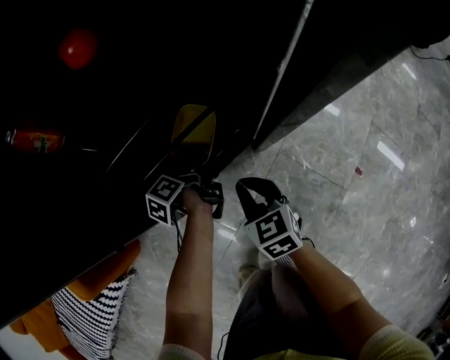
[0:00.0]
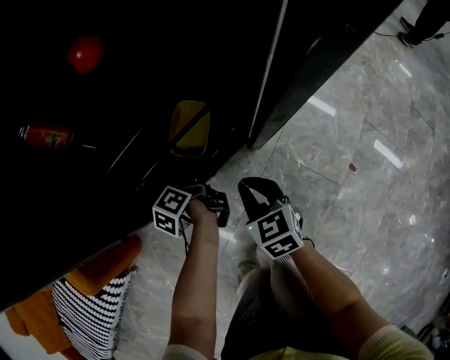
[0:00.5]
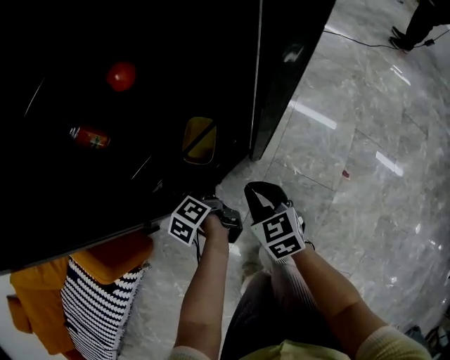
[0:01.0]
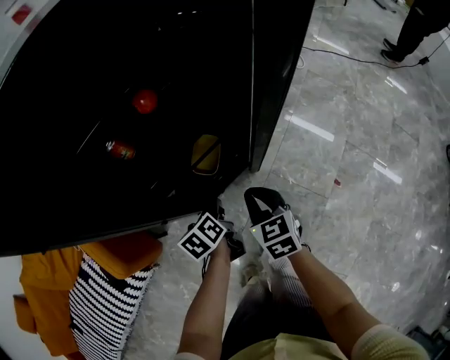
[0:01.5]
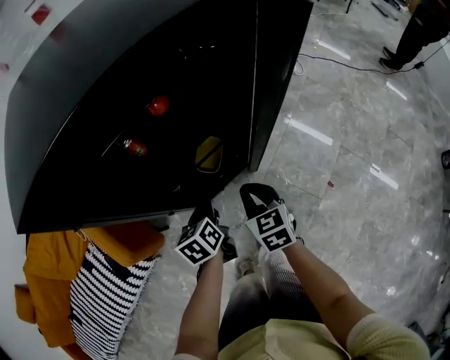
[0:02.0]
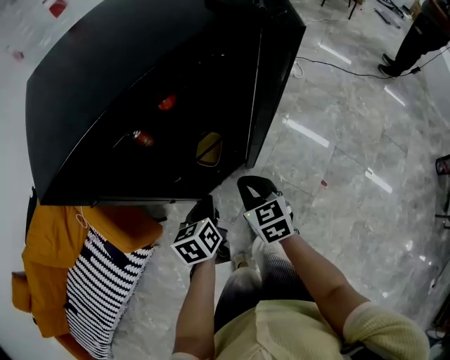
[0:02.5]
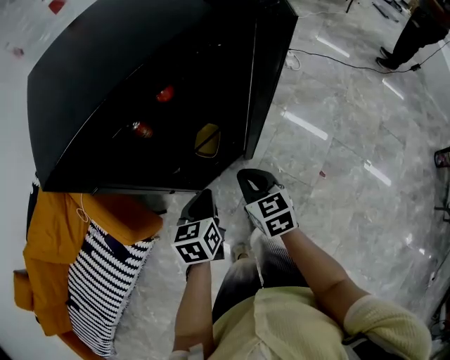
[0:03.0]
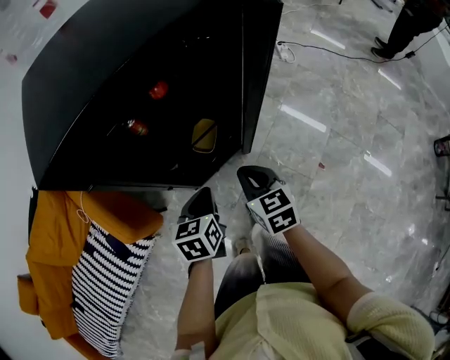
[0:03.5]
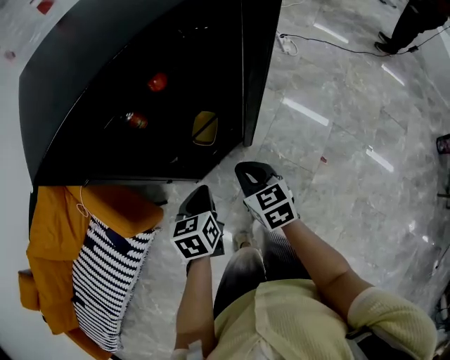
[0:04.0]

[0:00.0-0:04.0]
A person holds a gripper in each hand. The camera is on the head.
0.0 to 2.0 s: The right gripper heads upward, covering about 25 cm. Meanwhile the left gripper shifts some 35 cm upward and backward, and rolls clockwise, seen from behind, by about 50 degrees.
2.0 to 4.0 s: The left gripper heads upward and backward, covering roughly 10 cm. Meanwhile the right gripper goes about 5 cm upward.

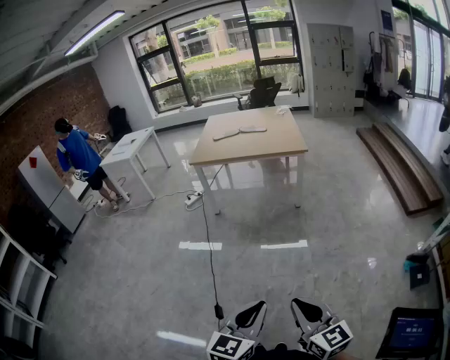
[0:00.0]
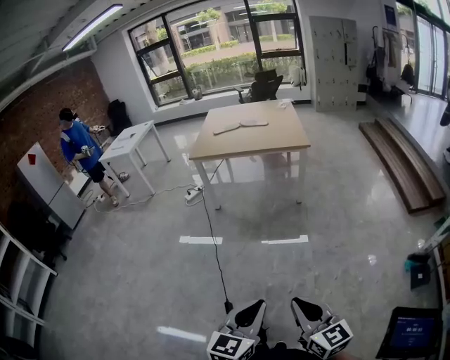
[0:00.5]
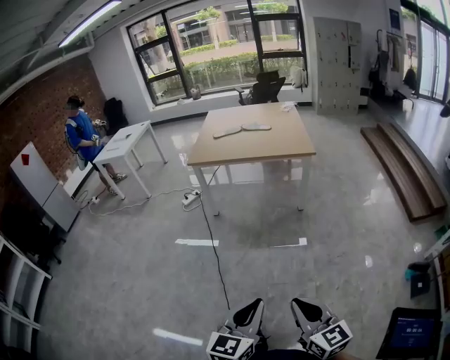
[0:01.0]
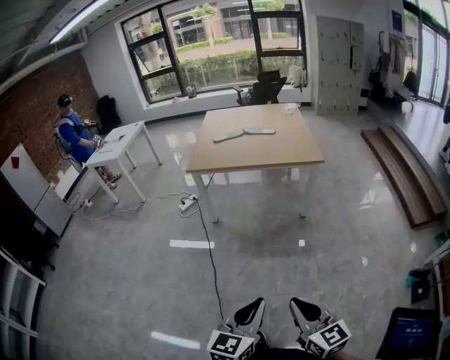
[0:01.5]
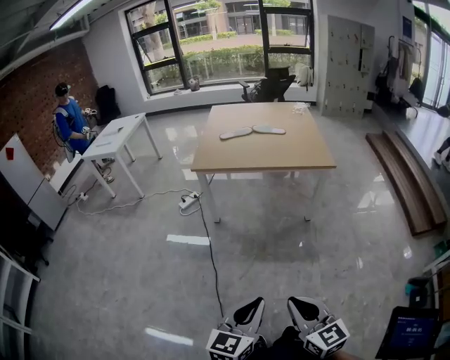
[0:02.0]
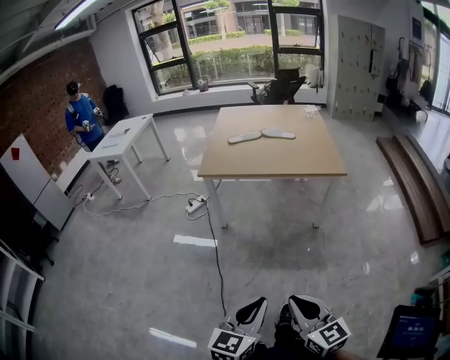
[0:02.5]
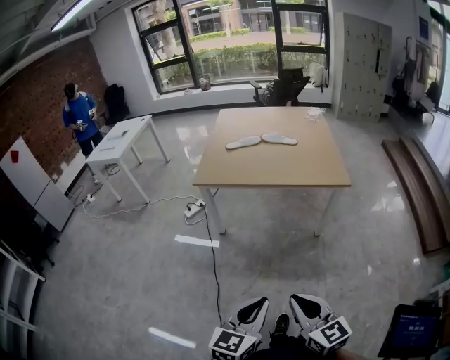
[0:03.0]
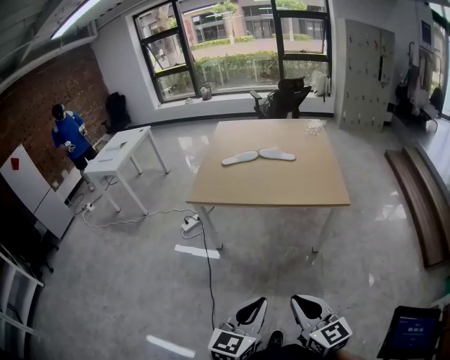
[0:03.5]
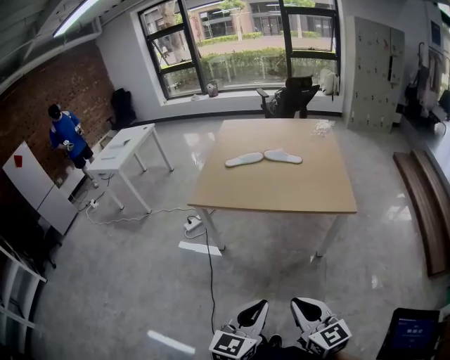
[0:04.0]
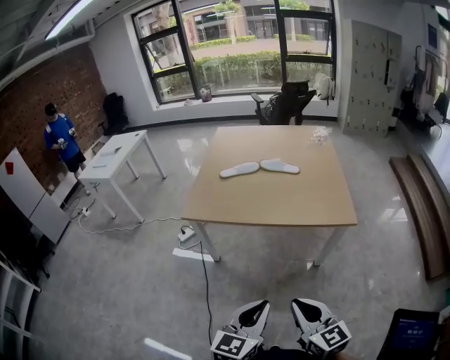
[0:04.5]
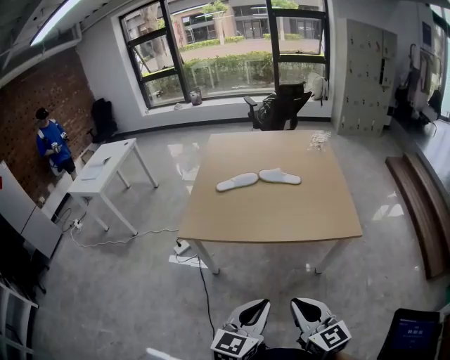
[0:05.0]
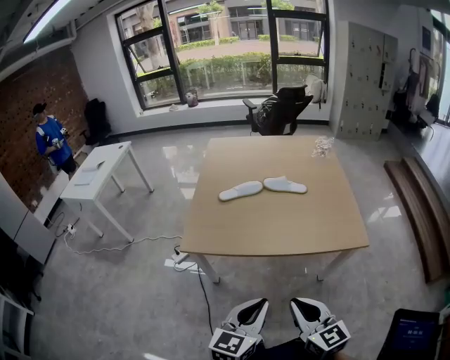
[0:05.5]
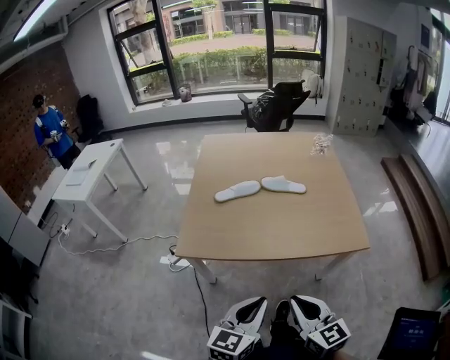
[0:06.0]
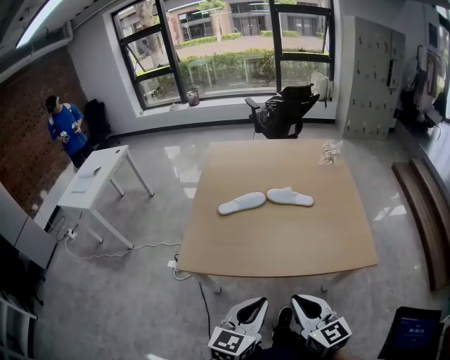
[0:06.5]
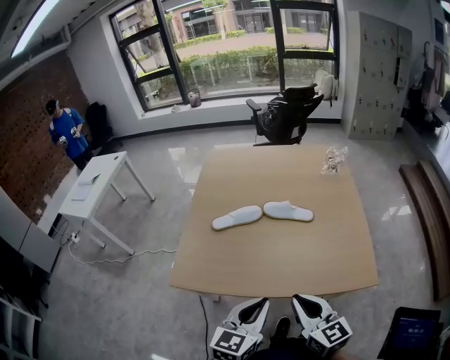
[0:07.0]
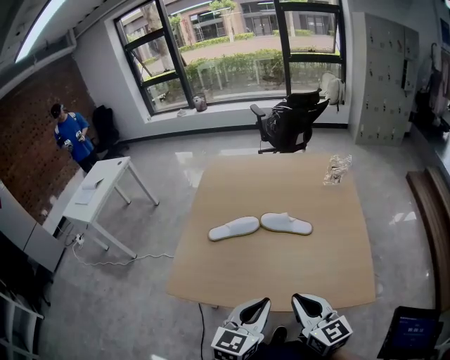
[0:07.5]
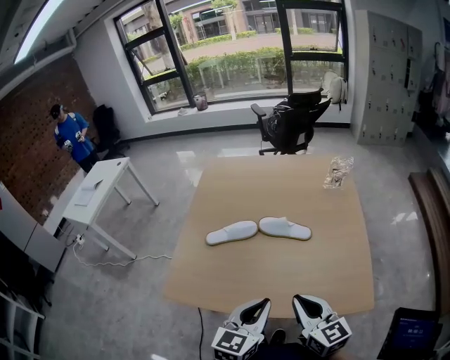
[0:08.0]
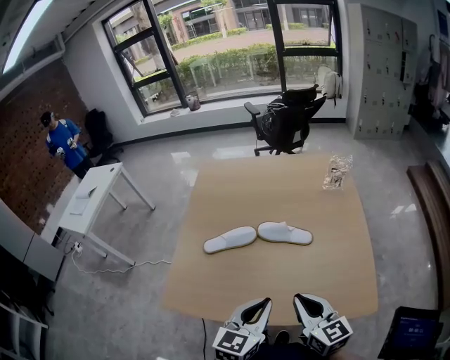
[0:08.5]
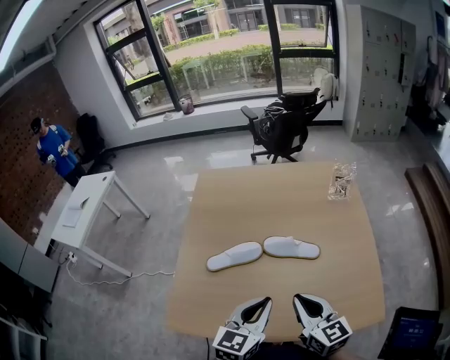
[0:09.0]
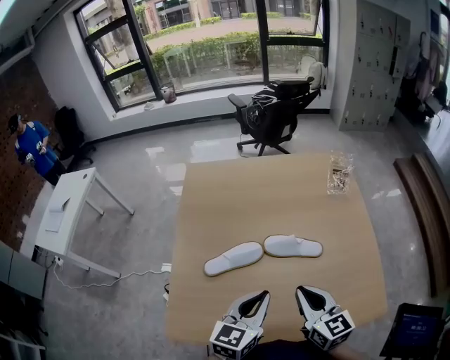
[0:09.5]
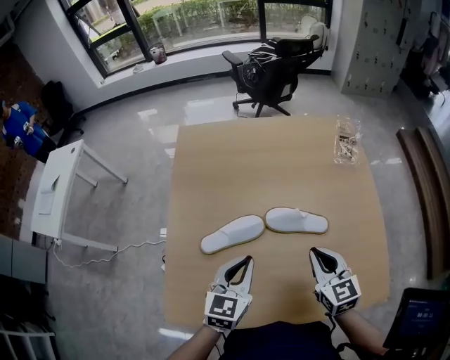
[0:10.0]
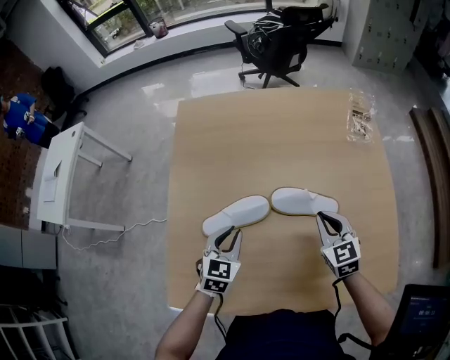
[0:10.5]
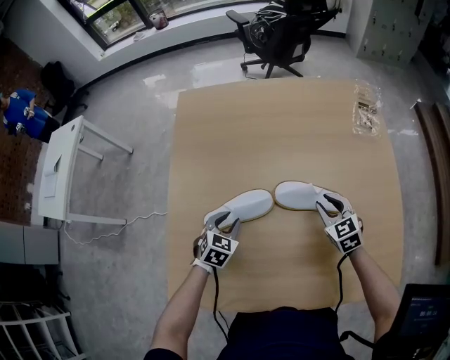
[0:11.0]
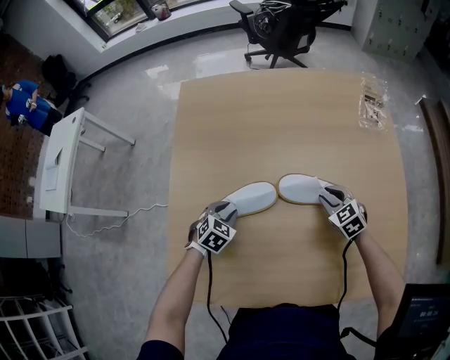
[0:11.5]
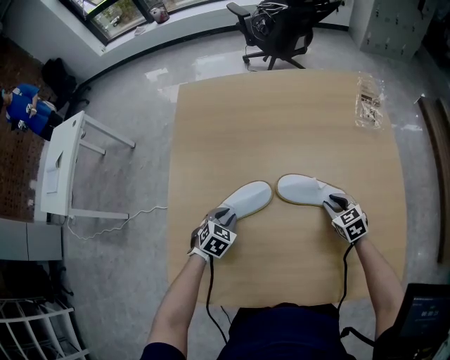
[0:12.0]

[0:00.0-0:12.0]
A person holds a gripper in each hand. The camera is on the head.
0.0 to 2.0 s: Both grippers travel together forward and to the left, about 35 cm.
2.0 to 4.0 s: Both grippers move forward, about 30 cm.
4.0 to 6.0 s: The two grippers go approximately 30 cm forward.
6.0 to 8.0 s: The grippers both shift forward and to the right by roughly 25 cm.
8.0 to 10.0 s: The right gripper is displaced forward by approximately 25 cm, and rotates approximately 20 degrees. The left gripper shifts roughly 25 cm forward and to the left.
10.0 to 12.0 s: The grippers both shift downward by roughly 25 cm. The right gripper swivels roughly 30 degrees; the left gripper points its fingers some 30 degrees further downward.

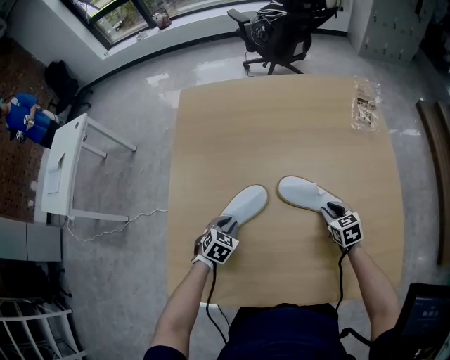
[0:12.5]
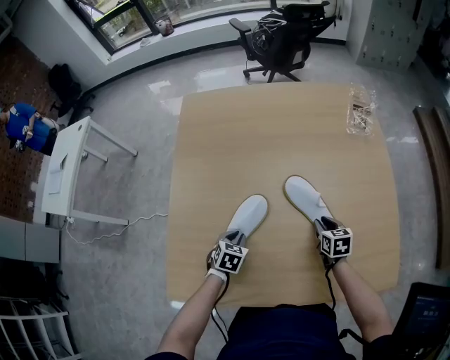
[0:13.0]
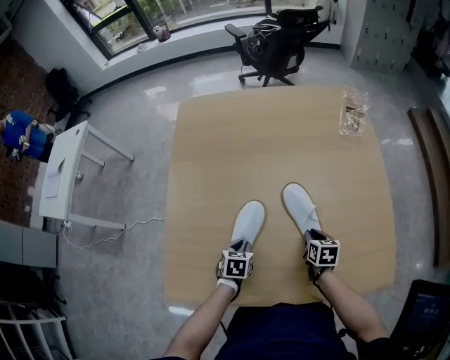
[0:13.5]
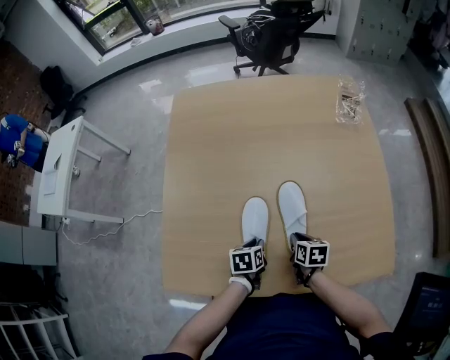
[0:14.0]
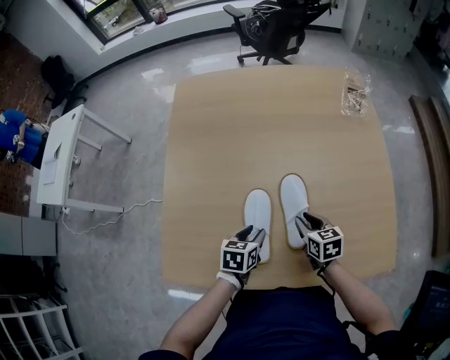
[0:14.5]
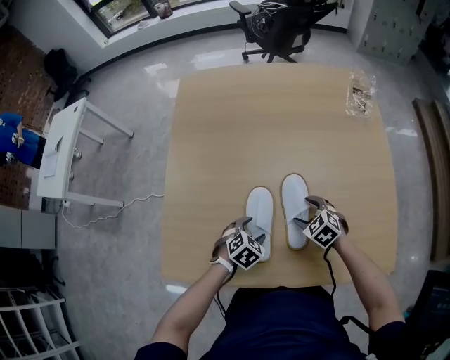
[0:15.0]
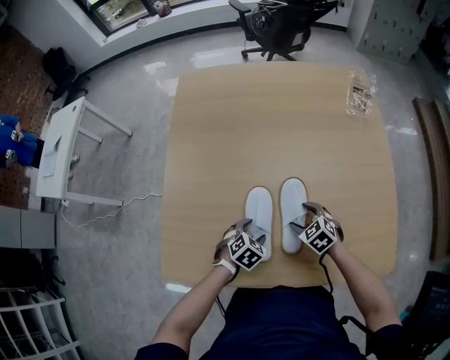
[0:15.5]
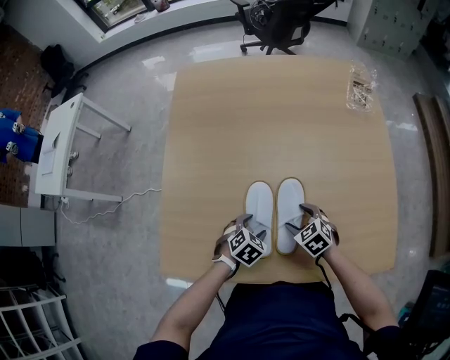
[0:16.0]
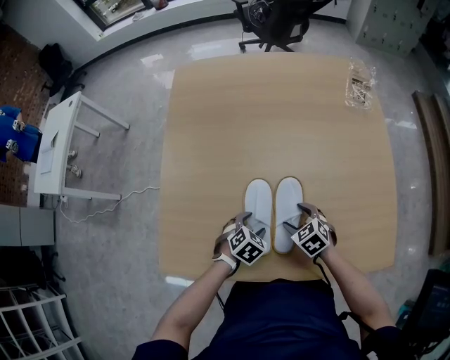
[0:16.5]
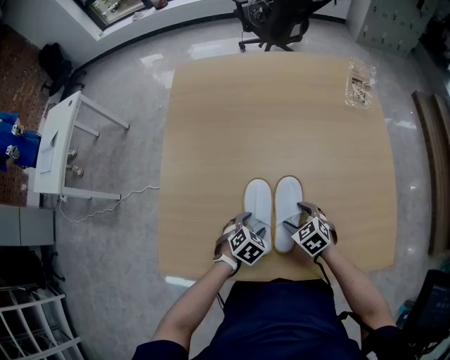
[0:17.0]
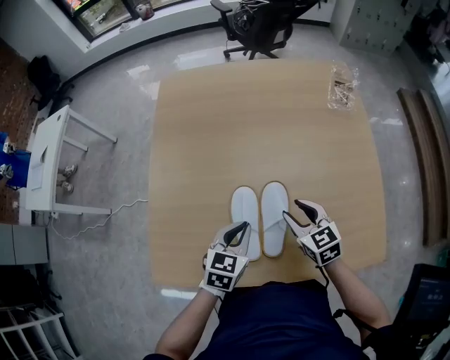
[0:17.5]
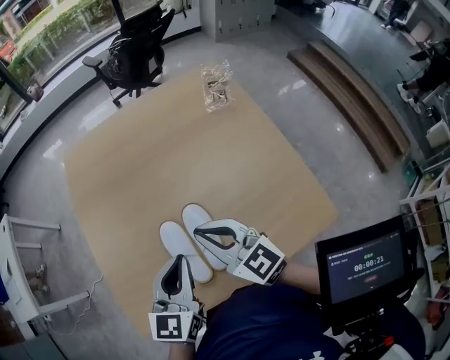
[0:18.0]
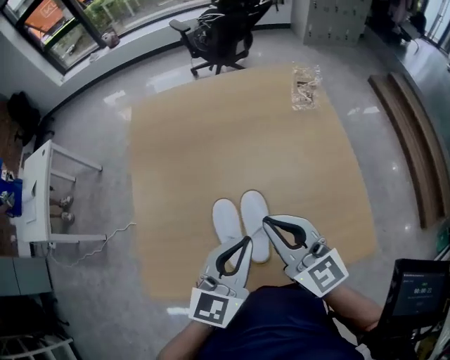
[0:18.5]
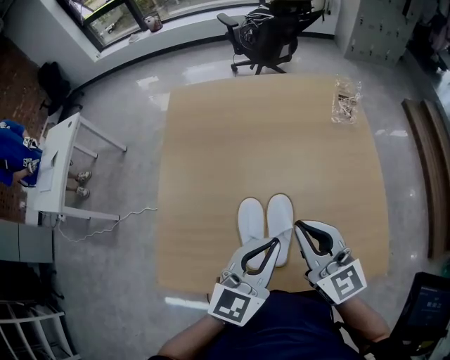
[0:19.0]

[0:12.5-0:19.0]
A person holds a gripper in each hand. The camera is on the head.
12.5 to 14.5 s: The right gripper shifts about 15 cm backward, to the left and upward. The left gripper heads to the right, backward and upward, covering some 15 cm, and changes its angle by approximately 40 degrees.
14.5 to 17.0 s: The left gripper moves downward, roughly 5 cm, turns by roughly 40 degrees, and opens up; the right gripper shifts by some 5 cm, rotates about 40 degrees, and opens.
17.0 to 19.0 s: Both grippers move upward, about 30 cm. The left gripper tilts its fingers approximately 50 degrees upward, and closes up. The right gripper points its fingers some 50 degrees further upward, and closes.

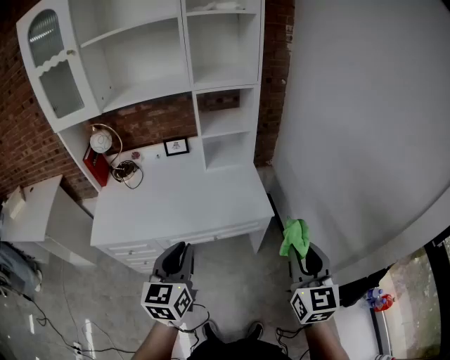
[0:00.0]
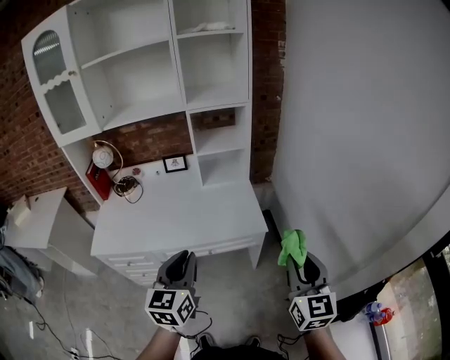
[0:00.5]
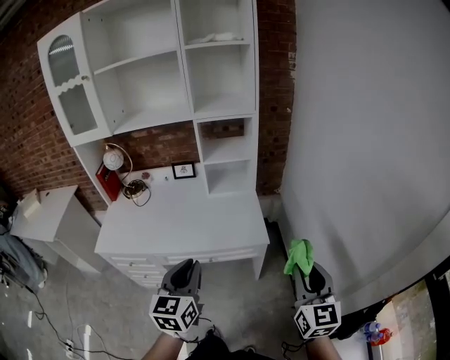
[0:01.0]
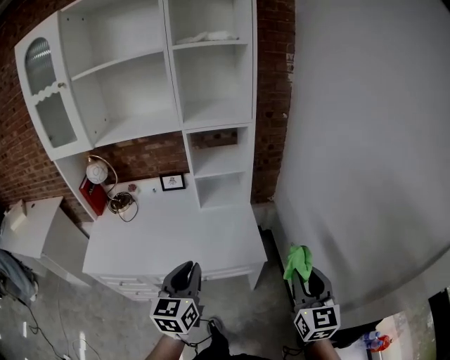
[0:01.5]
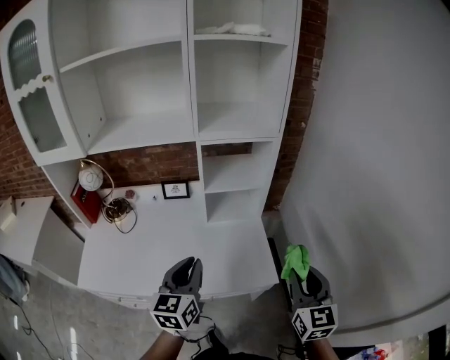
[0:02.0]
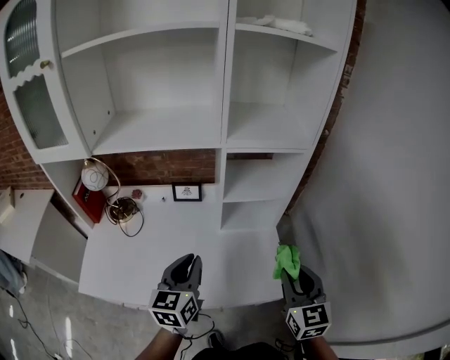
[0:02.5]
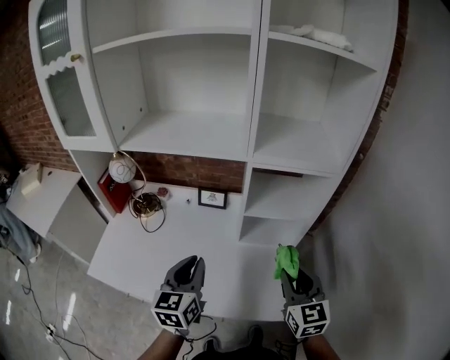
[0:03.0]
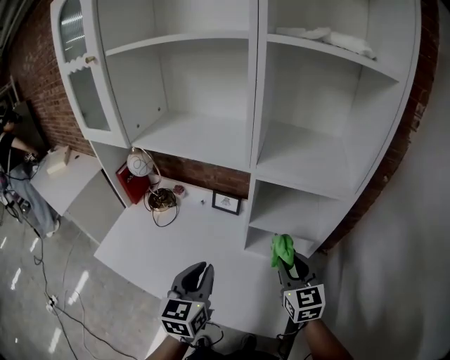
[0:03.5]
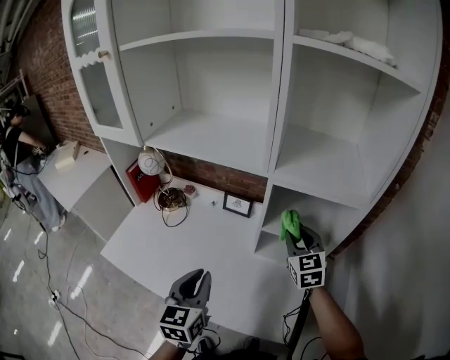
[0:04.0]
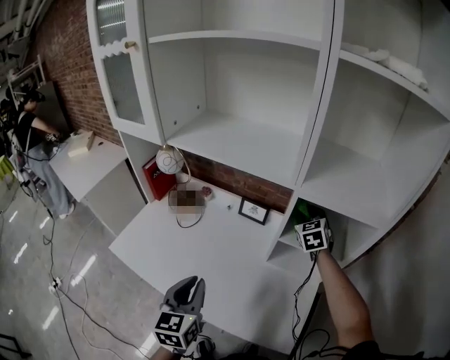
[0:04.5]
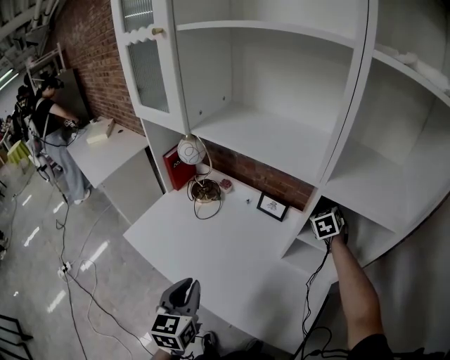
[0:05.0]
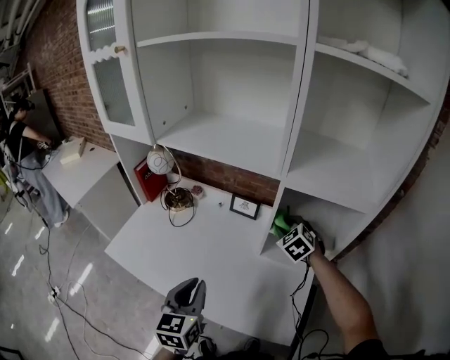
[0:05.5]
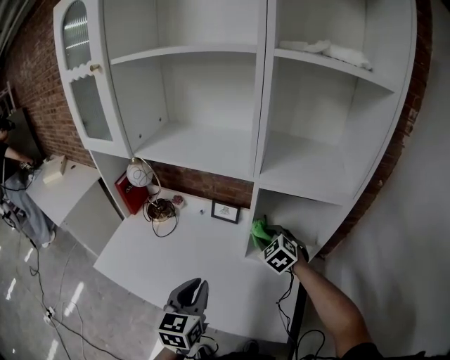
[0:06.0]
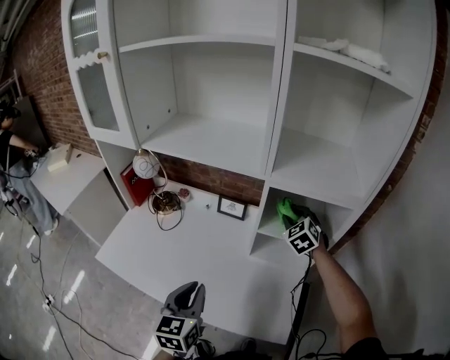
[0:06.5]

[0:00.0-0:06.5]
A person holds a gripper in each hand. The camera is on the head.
0.0 to 2.0 s: The grippers both shift forward by some 25 cm.
2.0 to 4.5 s: The right gripper ends up approximately 60 cm from where it was, and swivels about 40 degrees. Meanwhile the left gripper ends up some 15 cm from where it was, and rotates about 30 degrees.
4.5 to 6.5 s: The right gripper is displaced backward by some 5 cm; the left gripper ends up roughly 5 cm from where it was.
